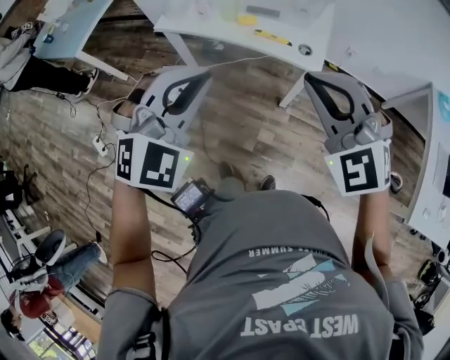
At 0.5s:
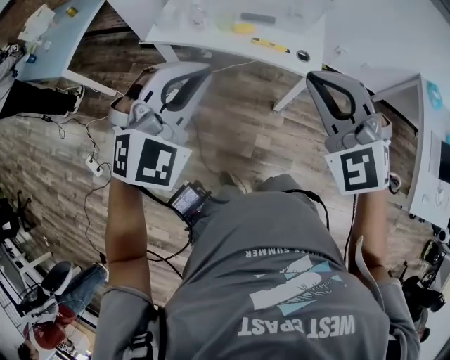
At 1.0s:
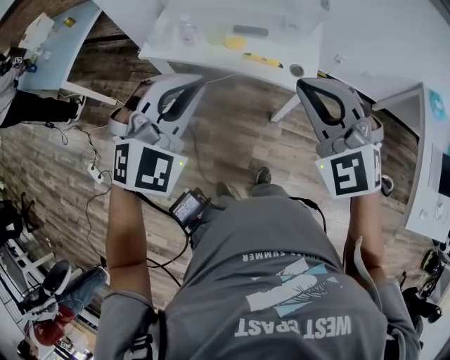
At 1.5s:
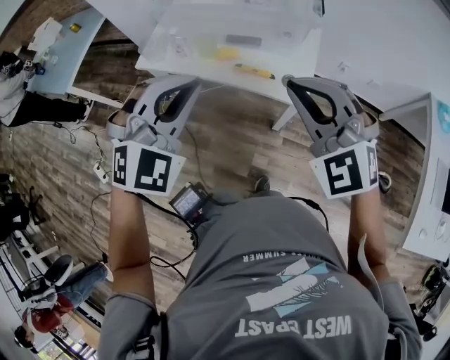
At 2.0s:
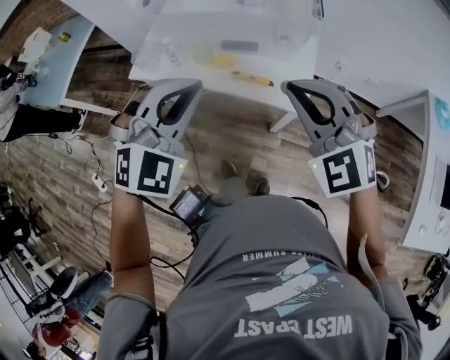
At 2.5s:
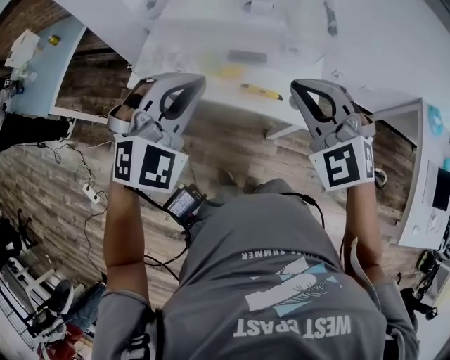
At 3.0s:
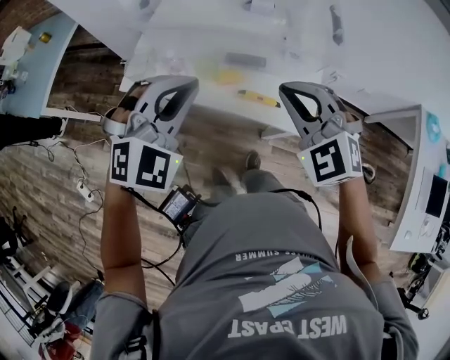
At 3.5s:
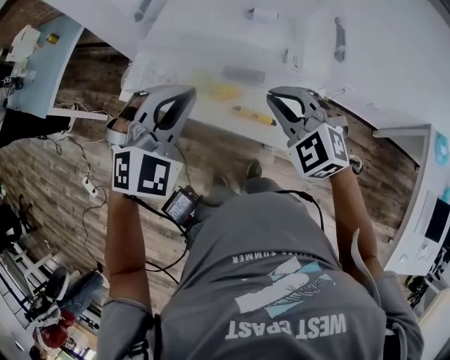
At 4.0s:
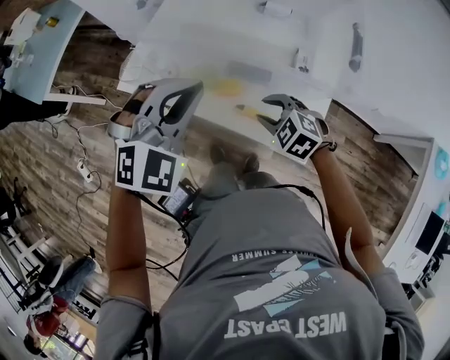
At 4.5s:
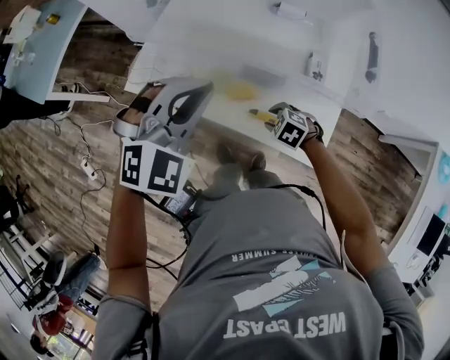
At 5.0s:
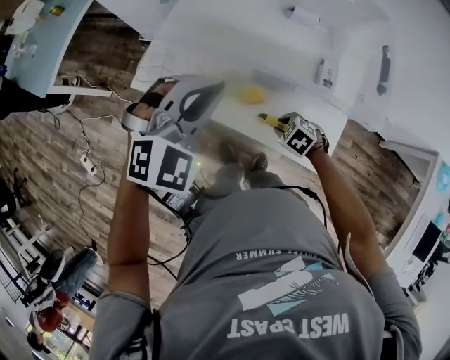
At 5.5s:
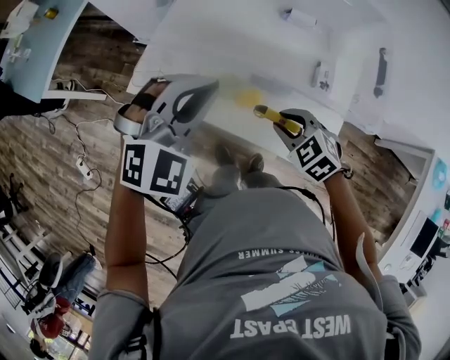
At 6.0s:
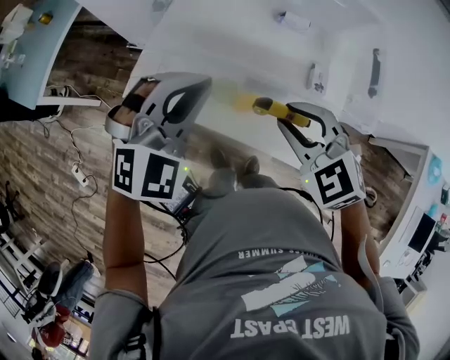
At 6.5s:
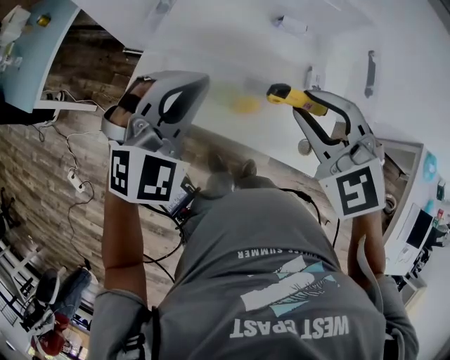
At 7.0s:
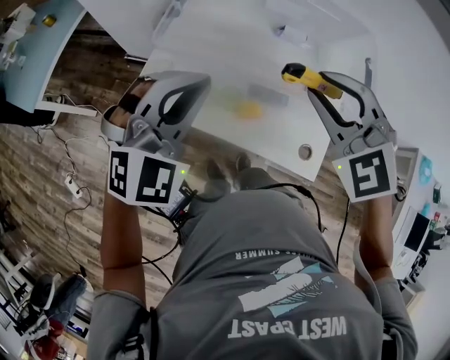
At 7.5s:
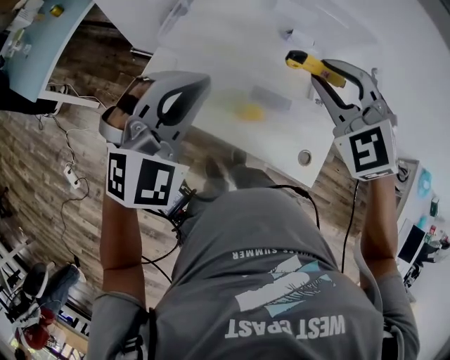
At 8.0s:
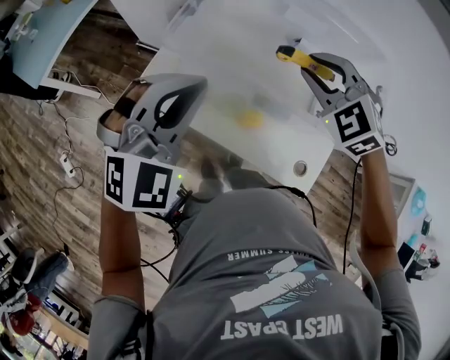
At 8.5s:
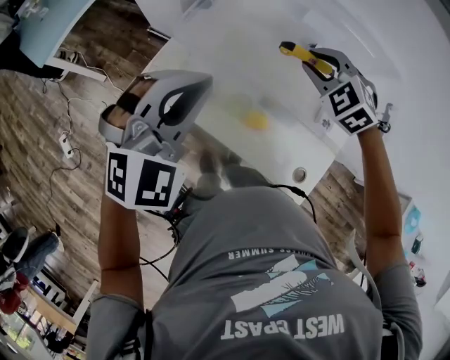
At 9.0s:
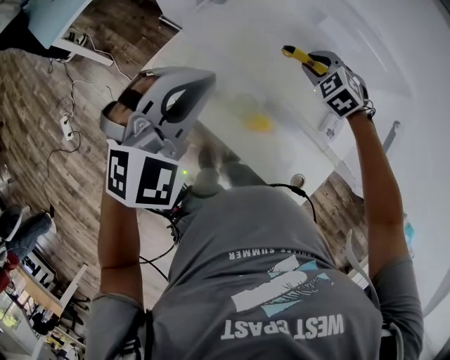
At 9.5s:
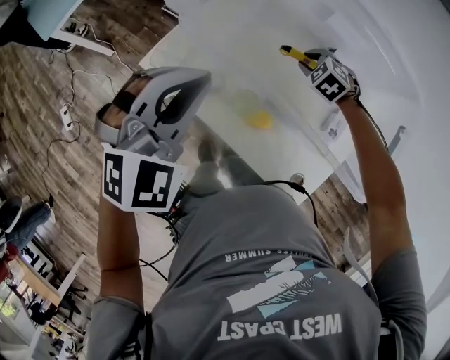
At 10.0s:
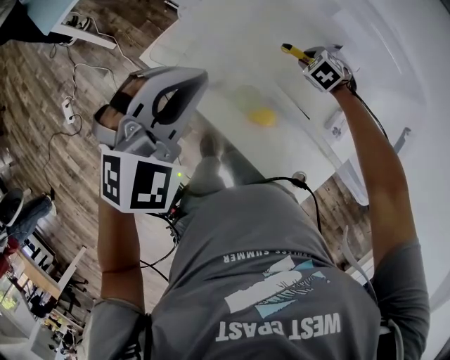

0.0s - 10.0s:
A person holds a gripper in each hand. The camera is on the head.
0.0s - 2.0s: The two grippers go approximately 20 cm forward.
2.0s - 4.0s: The right gripper heads downward and forward, covering about 35 cm, angles its fingers downward, by approximately 30 degrees, and opens. The left gripper travels forward by approximately 20 cm.
4.0s - 6.0s: The right gripper heads upward, covering about 15 cm; the left gripper ends up roughly 10 cm from where it was.
6.0s - 8.0s: The right gripper goes roughly 15 cm forward, and swivels roughly 20 degrees. The left gripper shifts by some 5 cm.
8.0s - 10.0s: The left gripper moves downward, roughly 5 cm; the right gripper is displaced downward and forward by about 35 cm, and tips its fingers downward by approximately 30 degrees.

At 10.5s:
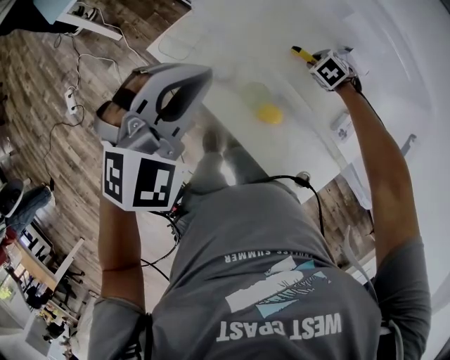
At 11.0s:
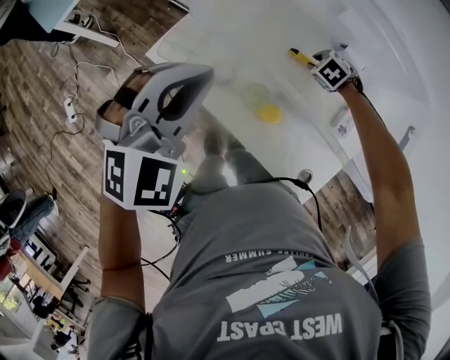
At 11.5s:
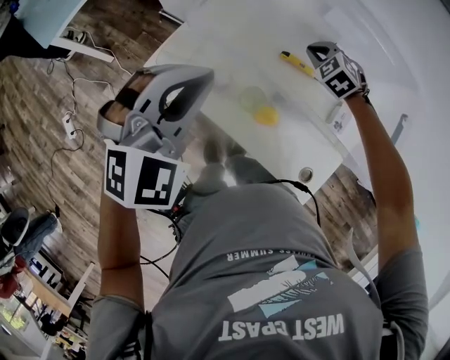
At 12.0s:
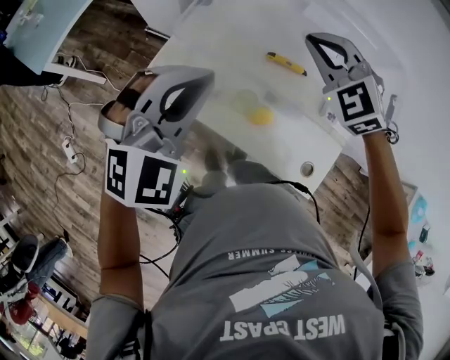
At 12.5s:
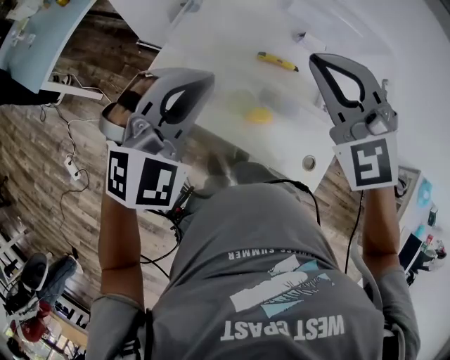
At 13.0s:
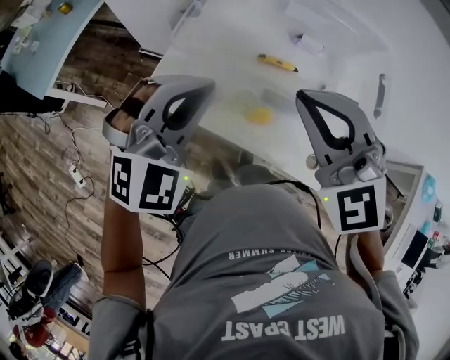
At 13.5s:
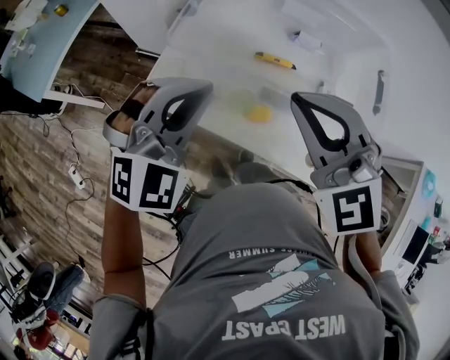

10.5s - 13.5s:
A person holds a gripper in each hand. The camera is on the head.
10.5s - 12.0s: The right gripper shifts some 35 cm upward, tilts its fingers about 40 degrees upward, and closes up.
12.0s - 13.5s: The right gripper shifts approximately 20 cm backward and upward.

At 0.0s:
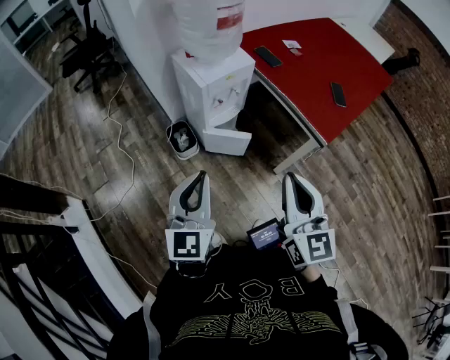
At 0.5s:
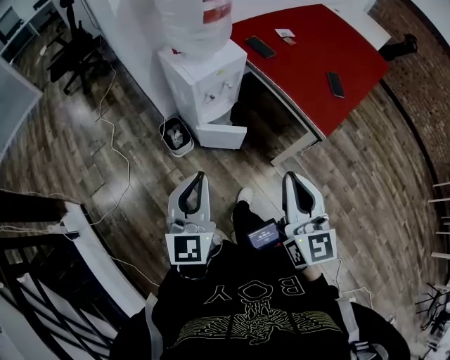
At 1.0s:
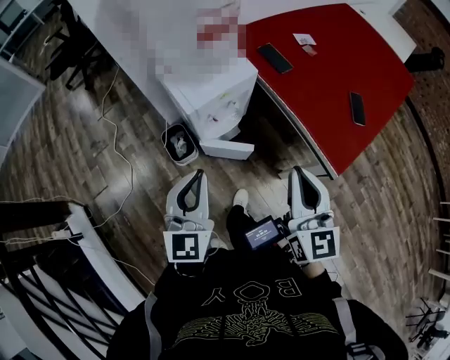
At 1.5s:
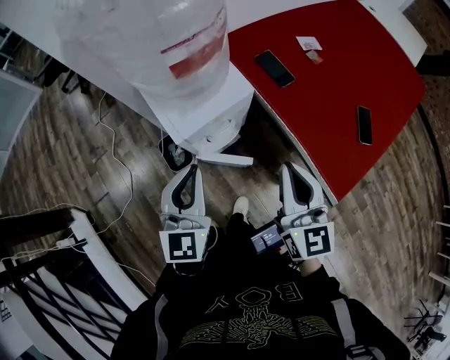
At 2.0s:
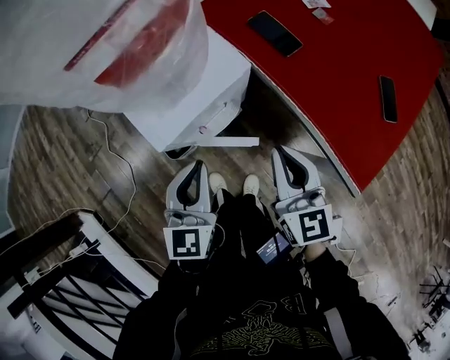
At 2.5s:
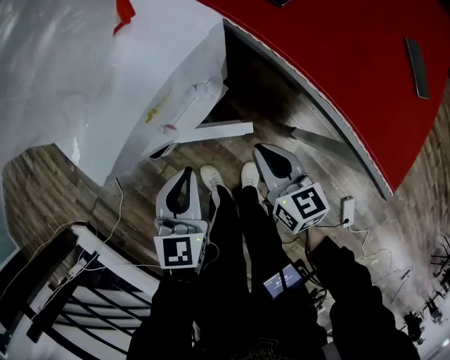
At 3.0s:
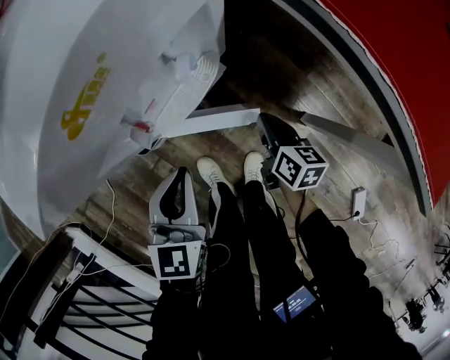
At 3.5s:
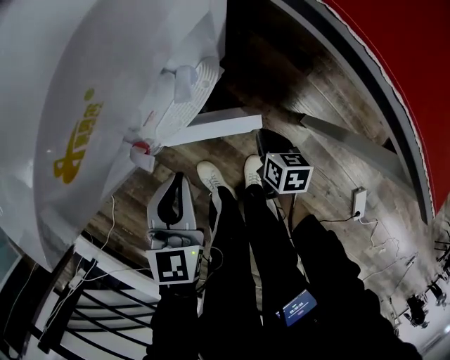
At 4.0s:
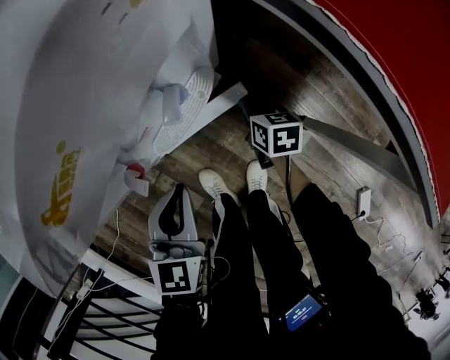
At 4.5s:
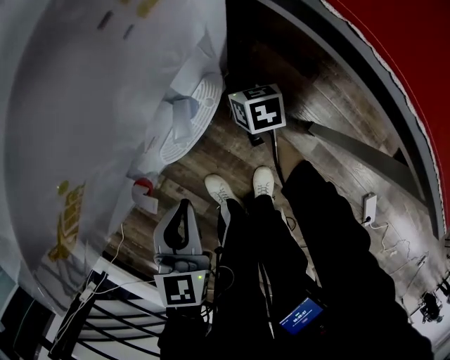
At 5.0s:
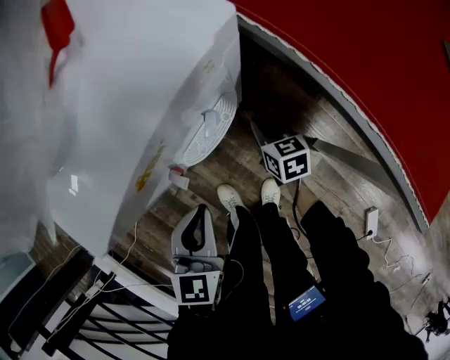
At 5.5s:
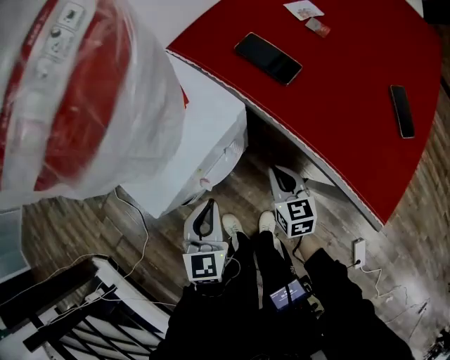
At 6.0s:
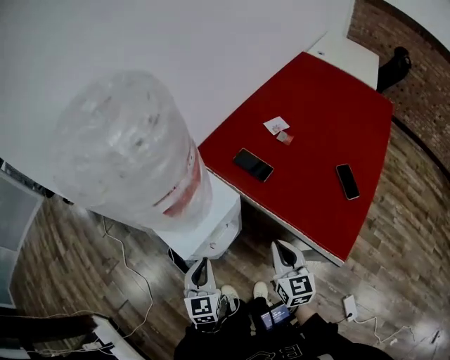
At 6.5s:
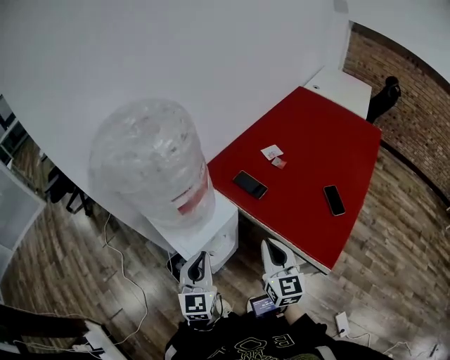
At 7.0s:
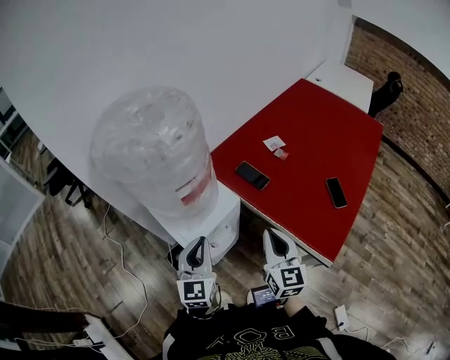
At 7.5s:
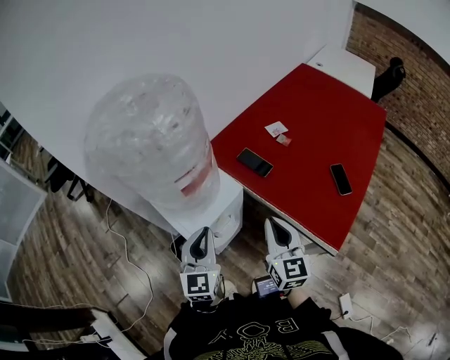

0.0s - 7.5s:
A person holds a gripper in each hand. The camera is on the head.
0.0s - 2.0s: Both grippers travel together forward and downward, some 40 cm.
2.0s - 4.0s: The right gripper heads downward, covering approximately 50 cm, and tilts its fingers roughly 30 degrees downward, while the left gripper heads downward, covering about 30 cm.
4.0s - 5.5s: The right gripper travels upward by some 25 cm, and rotates about 20 degrees; the left gripper is displaced upward by roughly 15 cm.
5.5s - 7.5s: Both grippers move upward, approximately 30 cm. The left gripper rotates some 20 degrees. Meanwhile the right gripper turns by some 30 degrees.

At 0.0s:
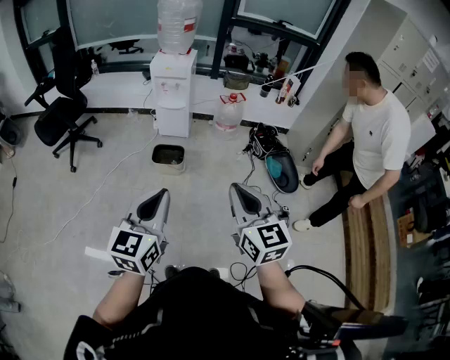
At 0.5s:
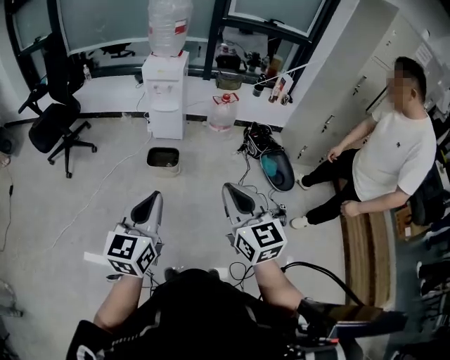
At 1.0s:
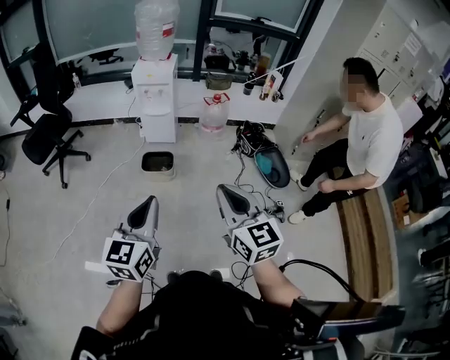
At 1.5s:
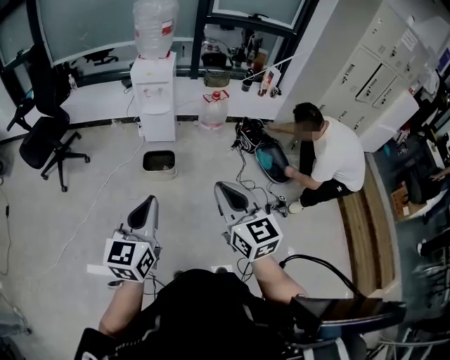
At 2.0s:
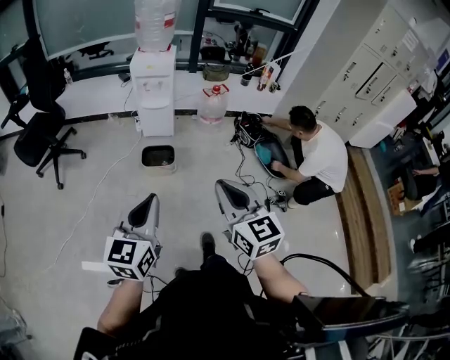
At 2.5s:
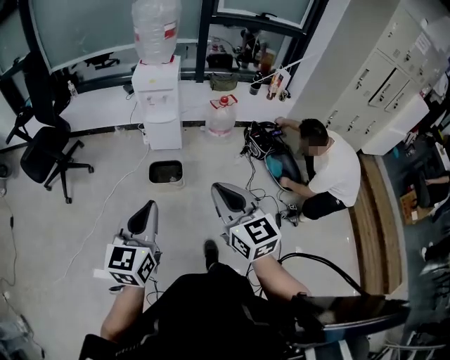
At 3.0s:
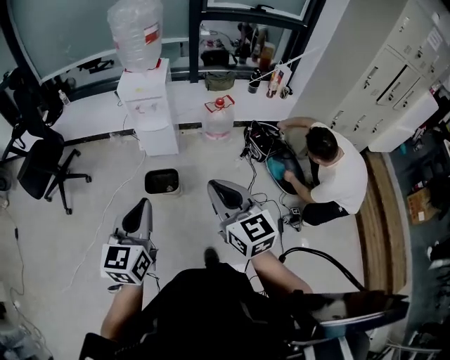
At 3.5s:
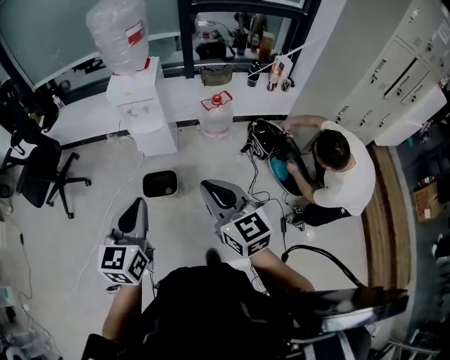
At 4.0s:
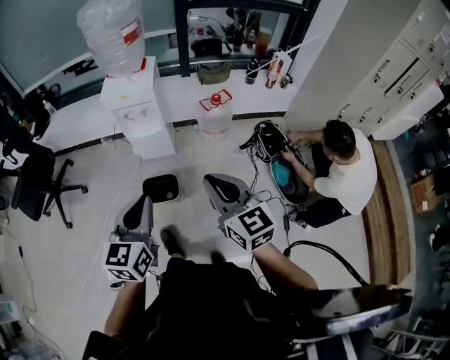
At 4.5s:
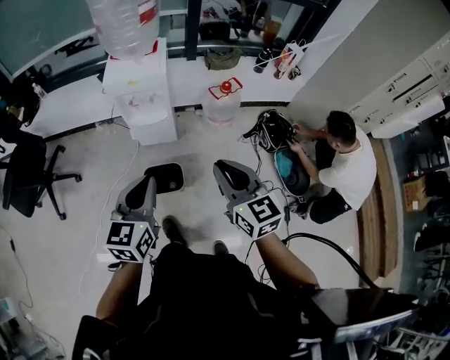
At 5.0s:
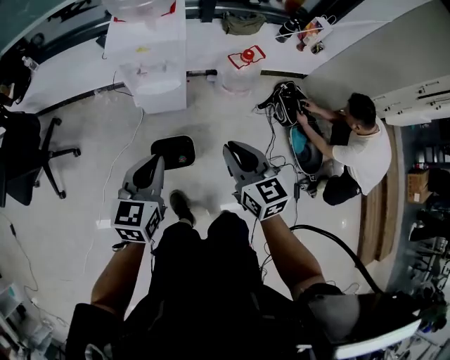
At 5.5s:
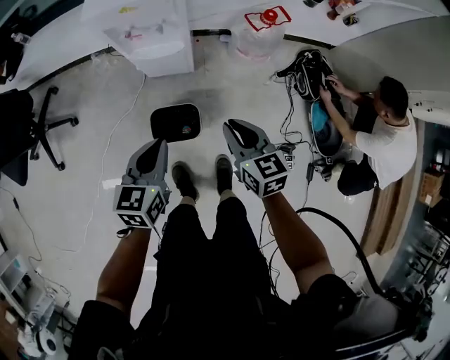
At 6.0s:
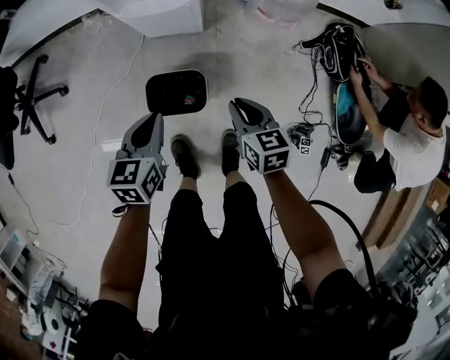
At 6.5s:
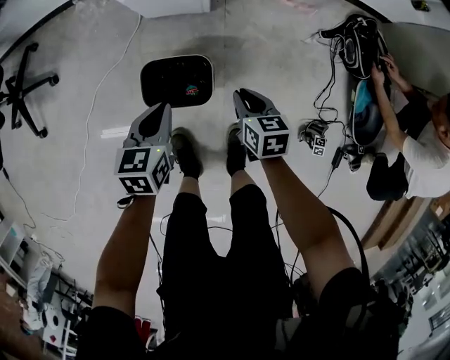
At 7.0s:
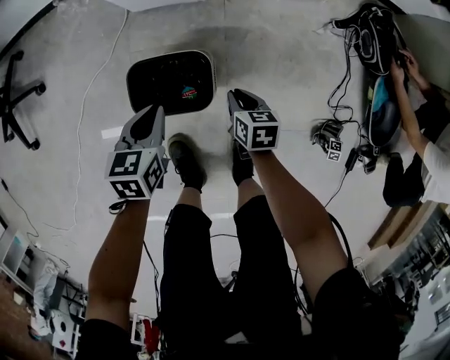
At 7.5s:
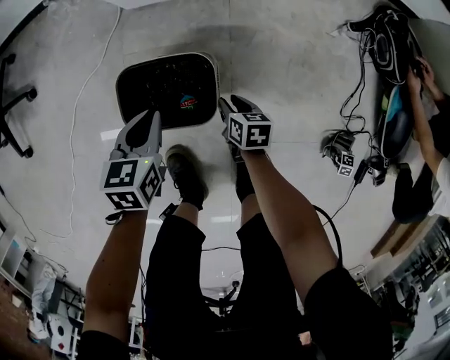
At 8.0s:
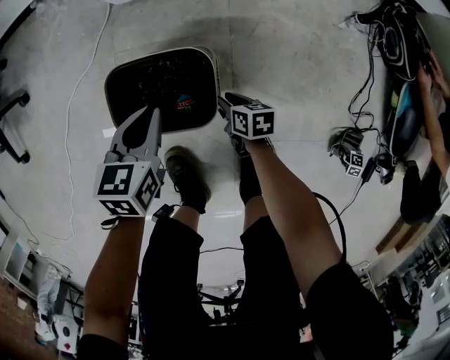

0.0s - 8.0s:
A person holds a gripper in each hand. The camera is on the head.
0.0s - 2.0s: Both grippers travel together to the left, roughly 10 cm.
2.0s - 4.0s: The grippers both shift forward by about 35 cm.
4.0s - 6.0s: Both grippers travel together downward and forward, roughly 50 cm. The right gripper tips its fingers downward by about 30 degrees; the left gripper swivels about 30 degrees.
6.0s - 8.0s: The two grippers go roughly 40 cm downward. The right gripper changes its angle by about 30 degrees, and opens its fingers.
